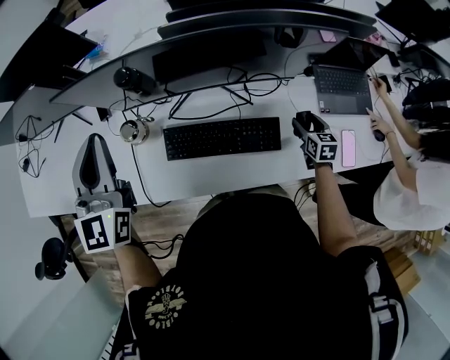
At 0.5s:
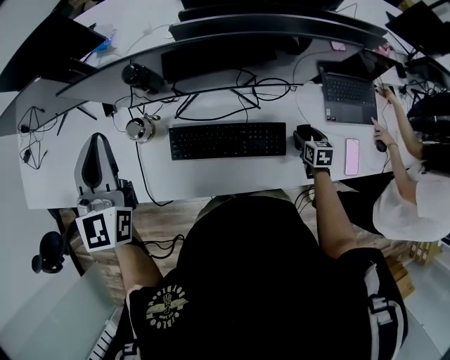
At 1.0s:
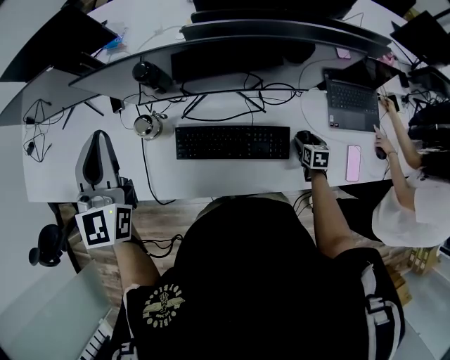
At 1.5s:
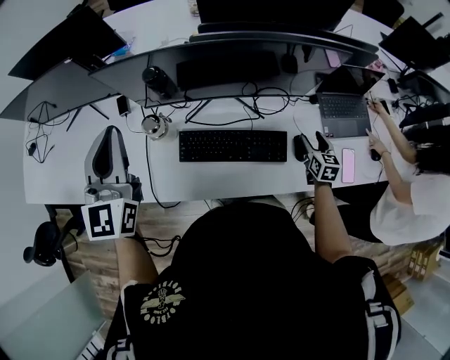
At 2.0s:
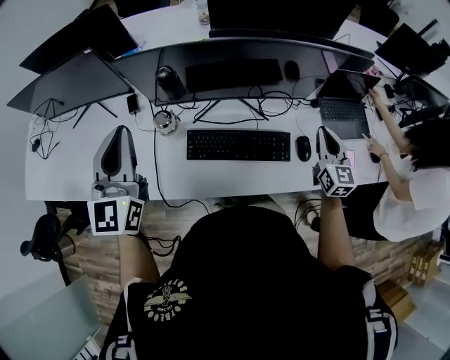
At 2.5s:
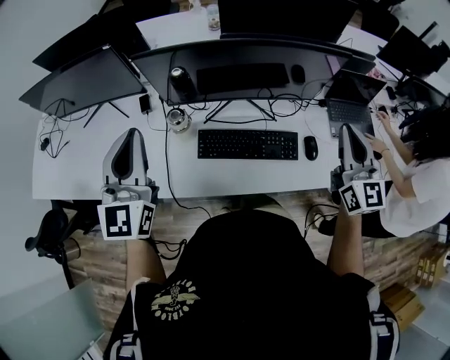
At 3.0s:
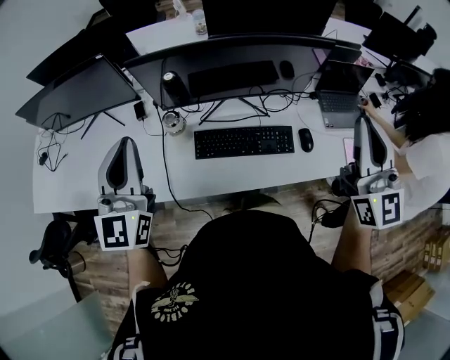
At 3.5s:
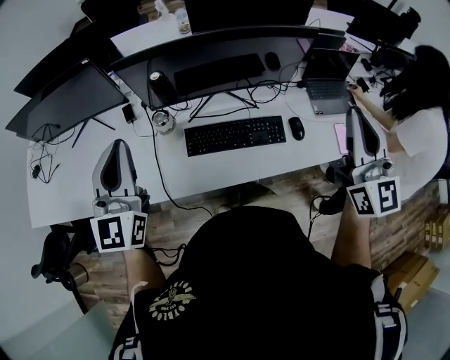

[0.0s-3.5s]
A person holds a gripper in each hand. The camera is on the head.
0.0s to 2.0s: The right gripper is displaced upward by about 20 cm, tips its fingers upward by approximately 30 degrees, and closes, while the left gripper moves backward and to the left, some 10 cm.
2.0s to 3.5s: The right gripper moves upward and backward, some 30 cm, and rotates some 20 degrees, while the left gripper moves backward, some 5 cm.

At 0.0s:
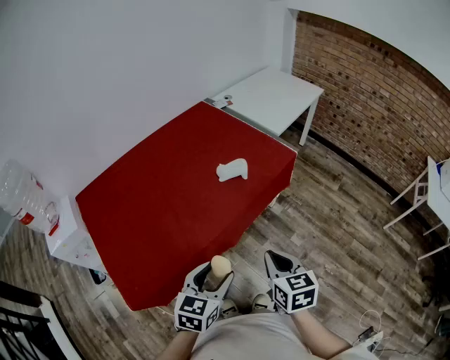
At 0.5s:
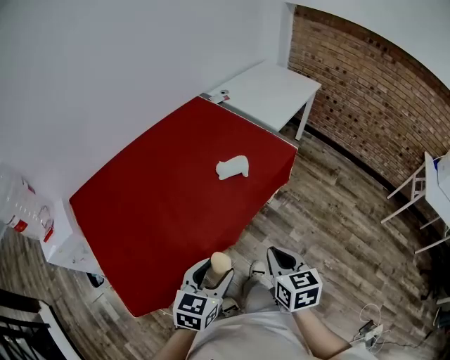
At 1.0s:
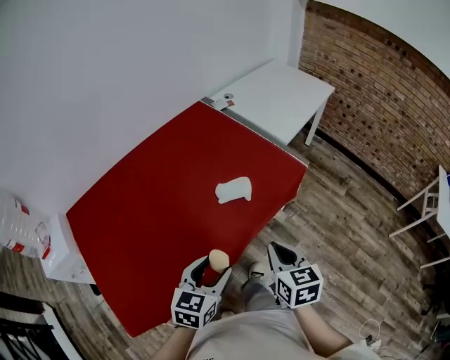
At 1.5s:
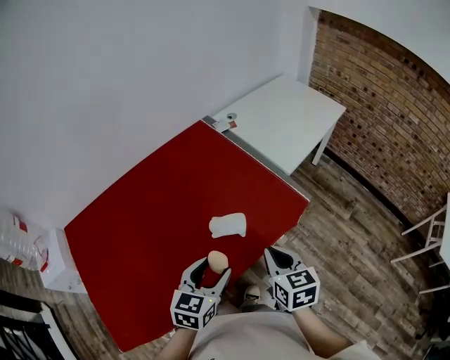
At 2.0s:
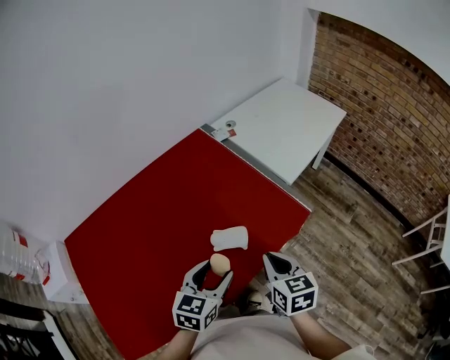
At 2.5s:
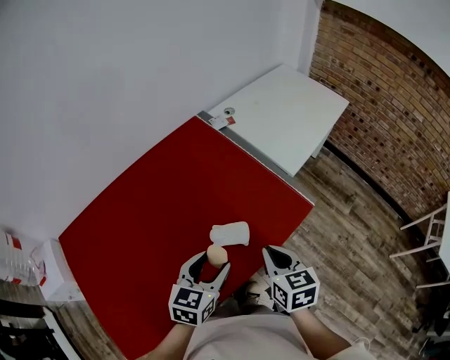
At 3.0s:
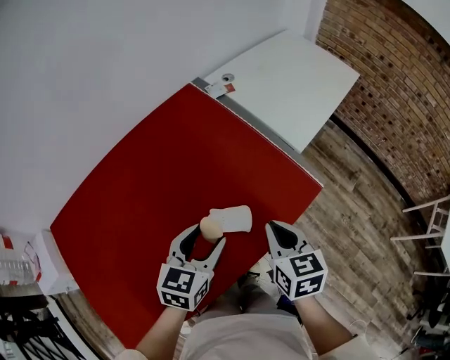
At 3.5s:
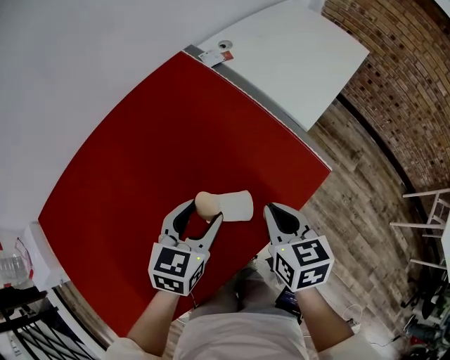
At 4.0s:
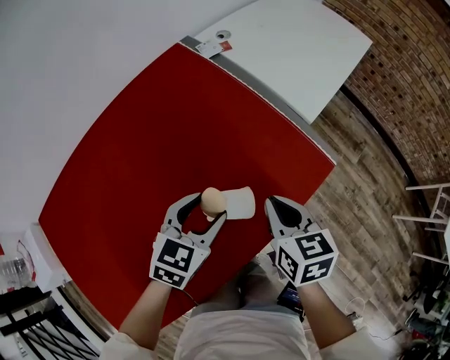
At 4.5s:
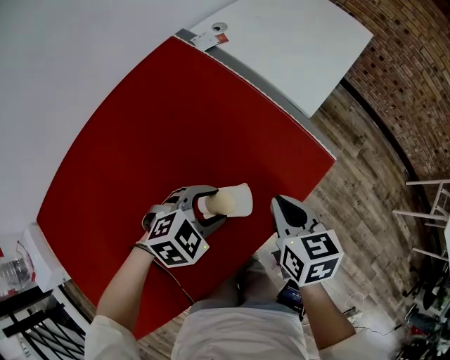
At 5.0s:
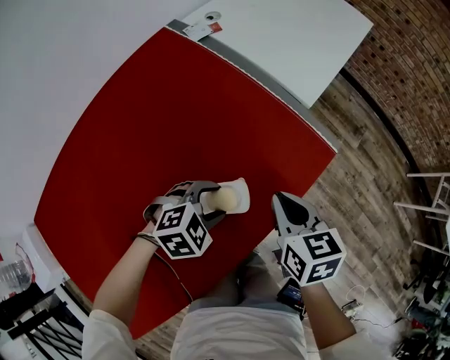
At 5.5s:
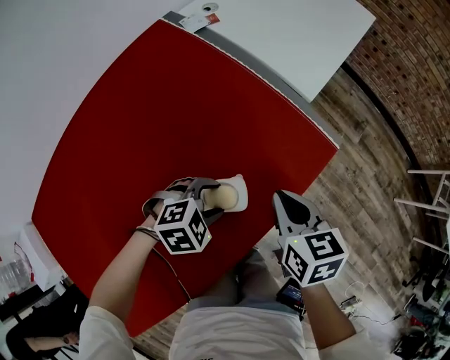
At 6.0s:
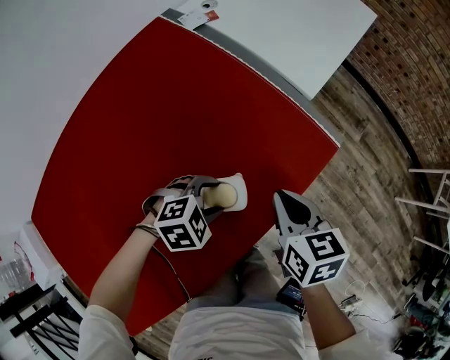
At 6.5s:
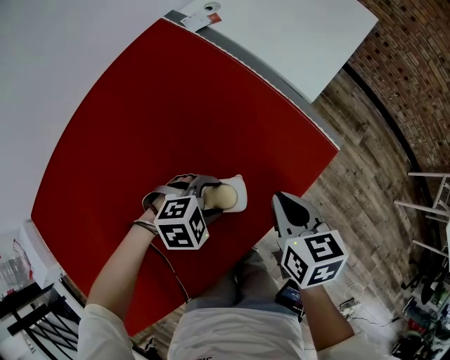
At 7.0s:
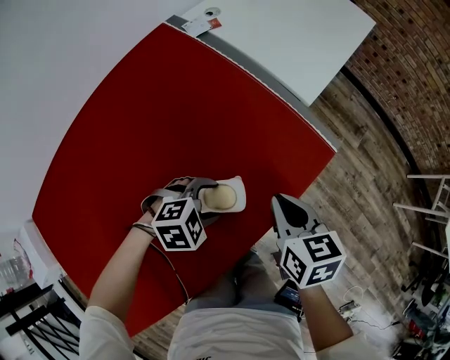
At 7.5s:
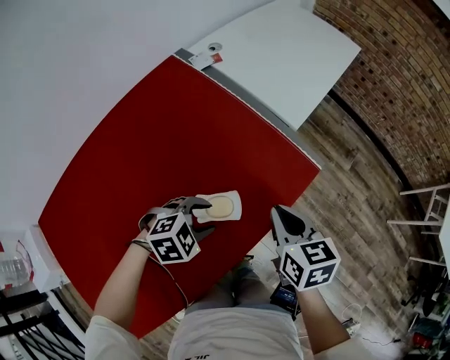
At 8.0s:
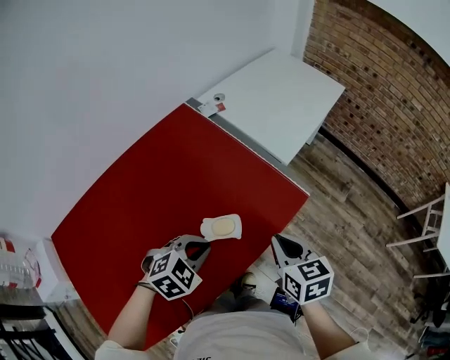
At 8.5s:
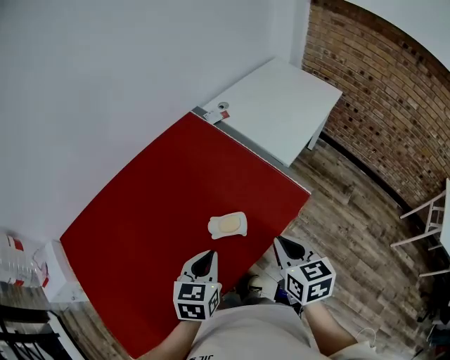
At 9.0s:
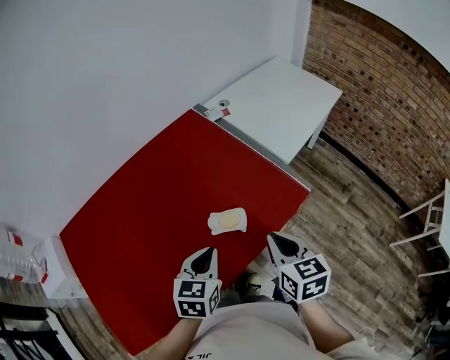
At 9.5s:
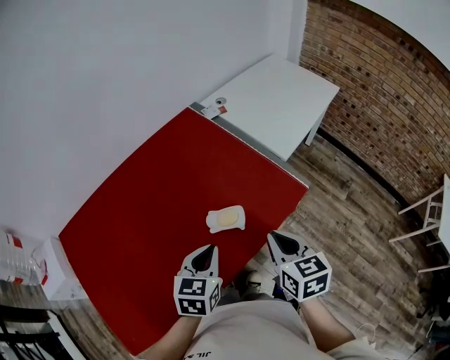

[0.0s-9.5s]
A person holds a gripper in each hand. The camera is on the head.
0.0s to 2.0s: Both grippers travel together forward, roughly 40 cm.
2.0s to 4.0s: Both grippers move forward and downward, about 20 cm.
4.0s to 5.5s: The left gripper moves downward and to the right, some 15 cm, and turns by some 50 degrees, while the right gripper moves roughly 5 cm.
5.5s to 7.5s: Both grippers travel together upward, roughly 5 cm.
7.5s to 9.5s: The right gripper changes place by about 15 cm. The left gripper is displaced upward by about 15 cm, swivels roughly 70 degrees, and closes up.

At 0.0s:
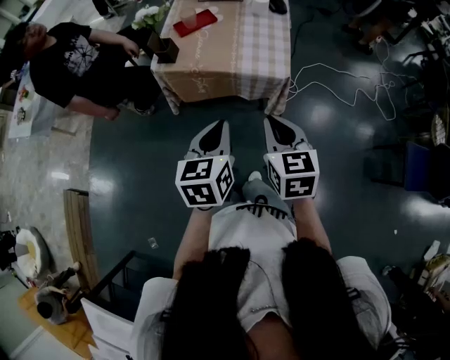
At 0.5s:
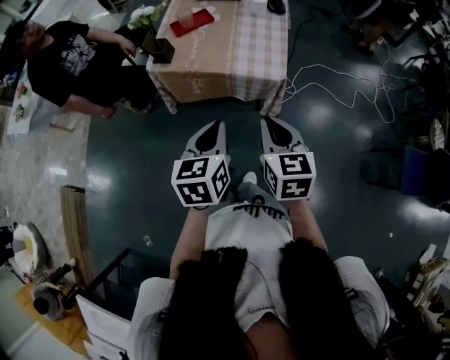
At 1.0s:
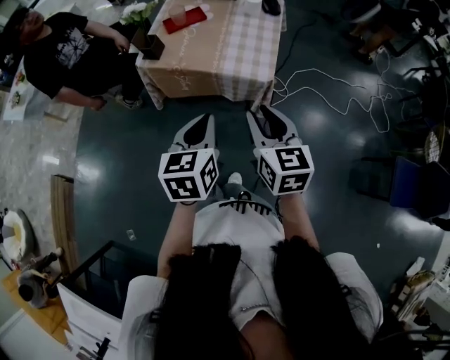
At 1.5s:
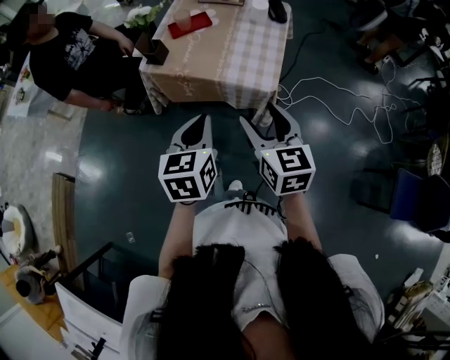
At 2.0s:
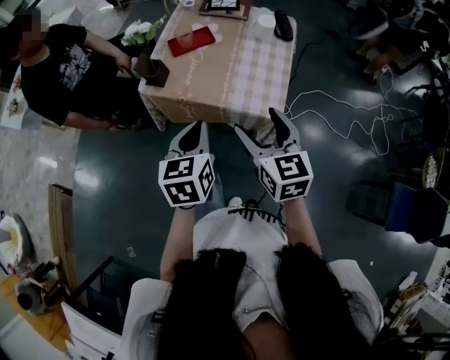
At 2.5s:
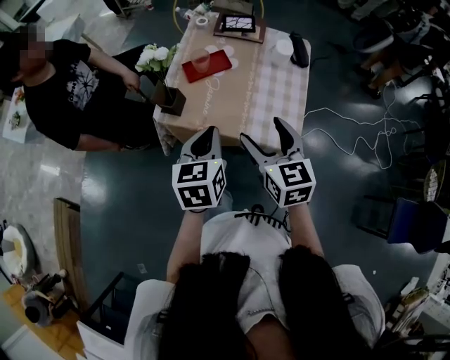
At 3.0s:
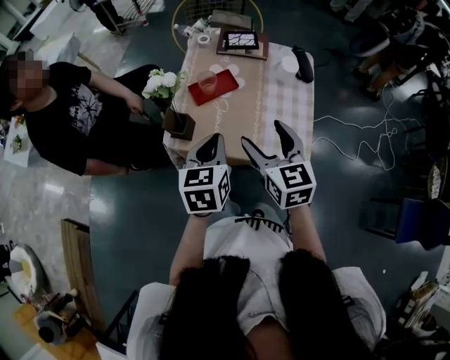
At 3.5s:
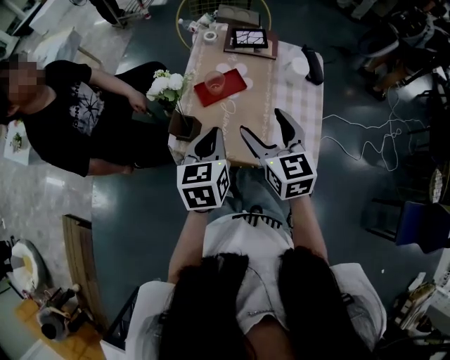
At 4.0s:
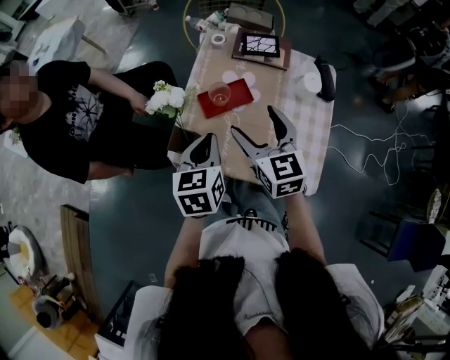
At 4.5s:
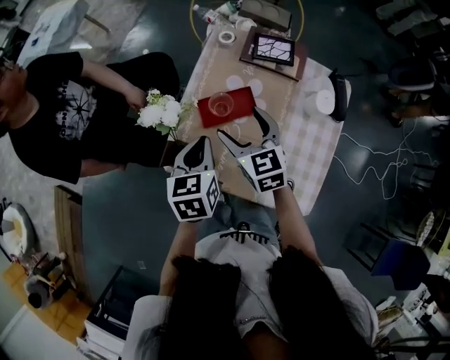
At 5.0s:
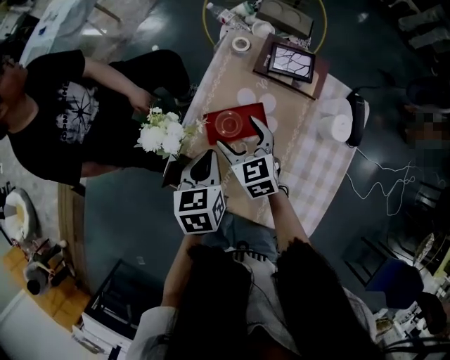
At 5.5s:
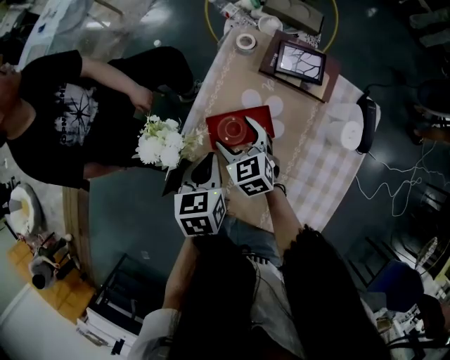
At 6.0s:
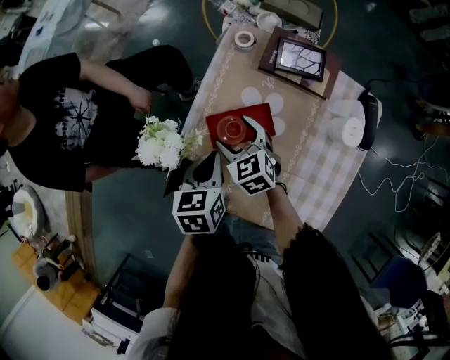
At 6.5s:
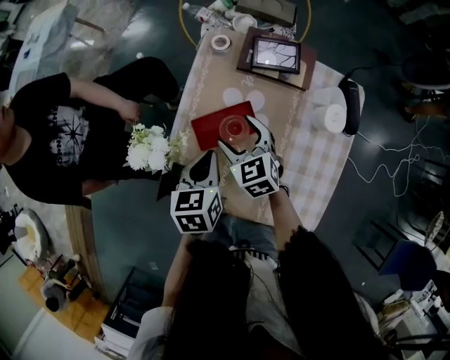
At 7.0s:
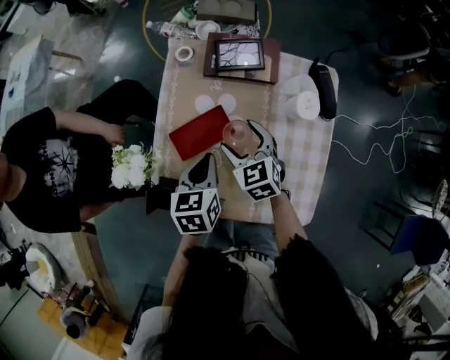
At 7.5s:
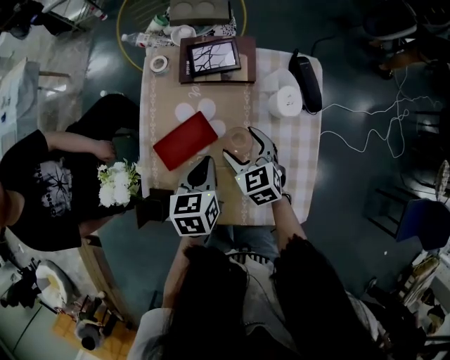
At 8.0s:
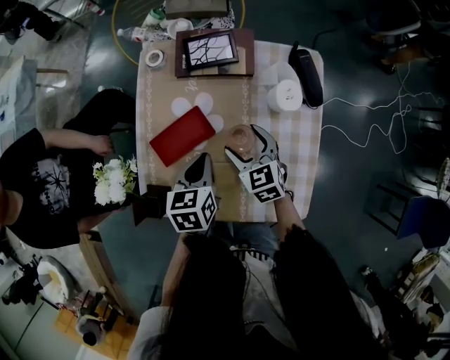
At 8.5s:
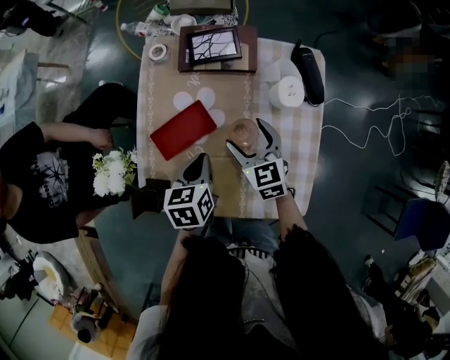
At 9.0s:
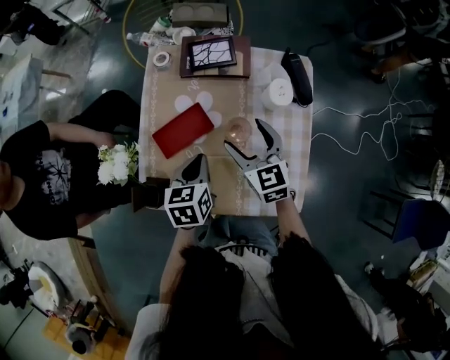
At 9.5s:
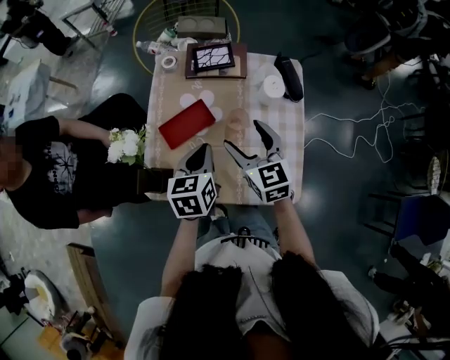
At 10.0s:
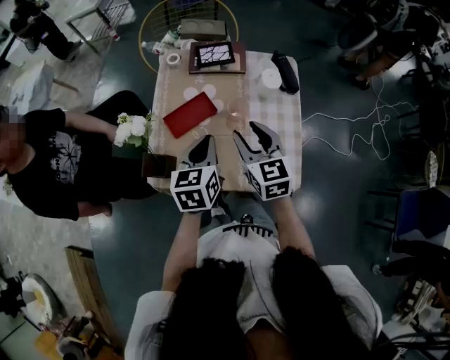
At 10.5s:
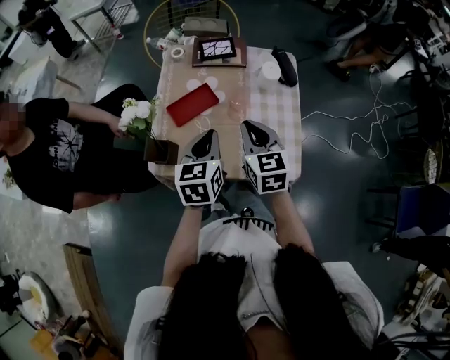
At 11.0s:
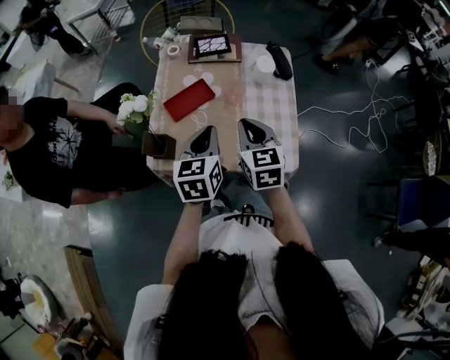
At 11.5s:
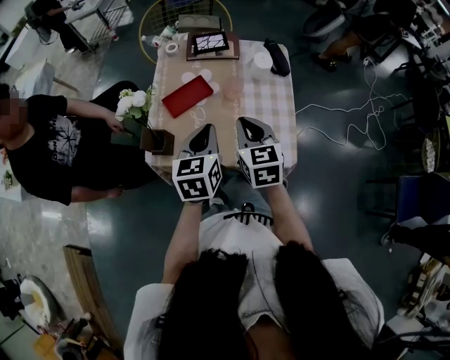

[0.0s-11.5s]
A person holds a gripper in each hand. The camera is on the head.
0.0s to 2.0s: The two grippers go about 15 cm forward. The right gripper opens.
2.0s to 4.0s: Both grippers move forward, some 30 cm.
4.0s to 6.0s: The right gripper shifts about 25 cm downward and forward, and swivels some 30 degrees. Meanwhile the left gripper is displaced downward and forward by about 15 cm.
6.0s to 7.5s: The two grippers go roughly 15 cm to the right. The right gripper rotates roughly 20 degrees.
7.5s to 9.5s: The right gripper is displaced upward and backward by some 15 cm, and rotates roughly 20 degrees, while the left gripper shifts some 10 cm upward and backward.
9.5s to 11.5s: The left gripper moves backward and upward, roughly 15 cm. Meanwhile the right gripper goes approximately 10 cm backward, and closes its fingers.

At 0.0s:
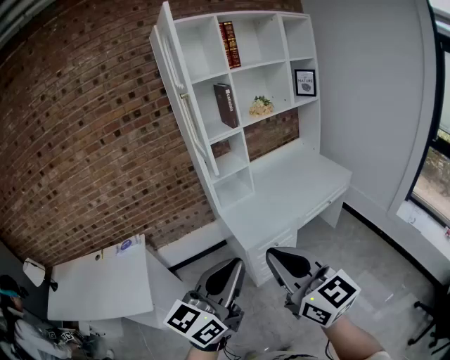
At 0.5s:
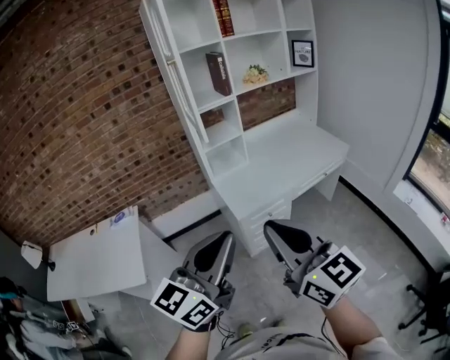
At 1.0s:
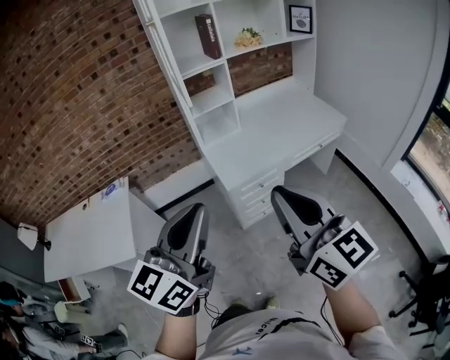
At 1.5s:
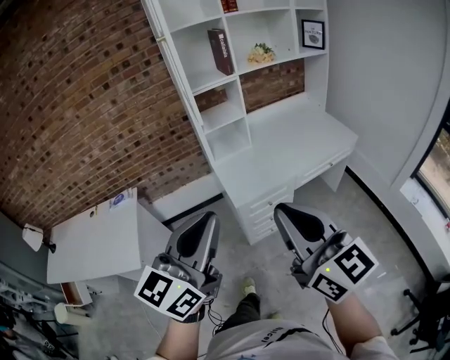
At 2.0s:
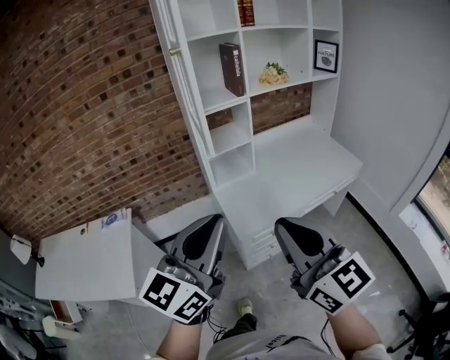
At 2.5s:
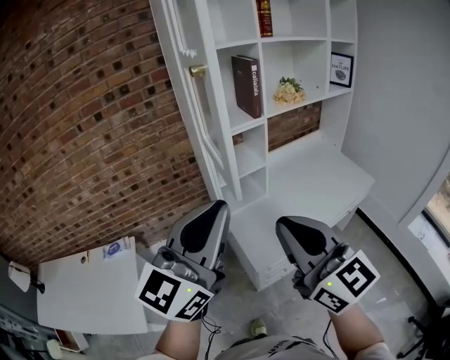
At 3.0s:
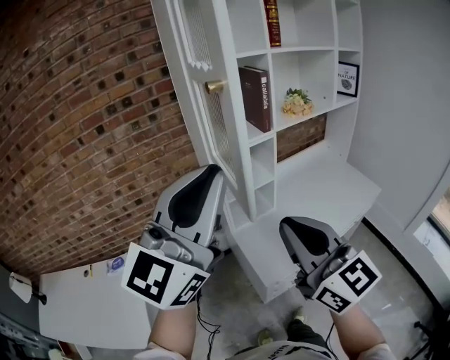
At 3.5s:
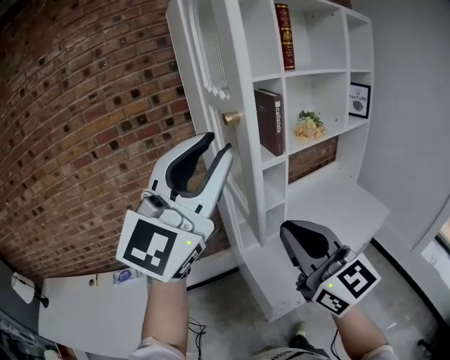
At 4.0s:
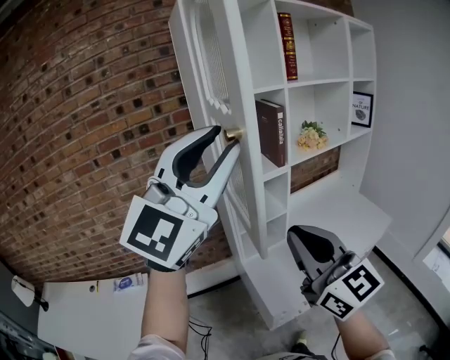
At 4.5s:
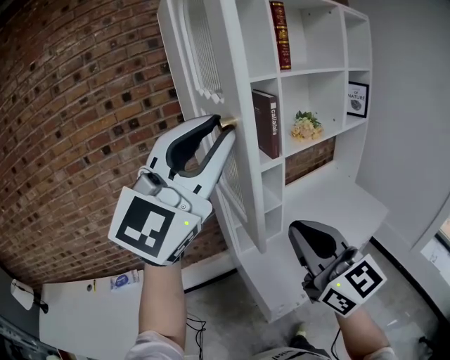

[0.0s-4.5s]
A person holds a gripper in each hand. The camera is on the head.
0.0s to 2.0s: The grippers both shift forward by about 15 cm.
2.0s to 4.5s: The right gripper shifts some 25 cm forward; the left gripper goes roughly 35 cm forward and upward, and twists some 40 degrees clockwise, seen from behind.
